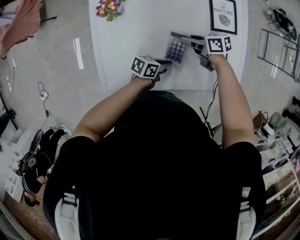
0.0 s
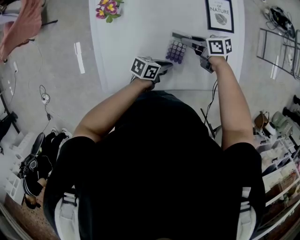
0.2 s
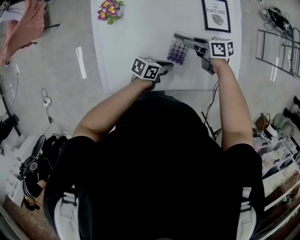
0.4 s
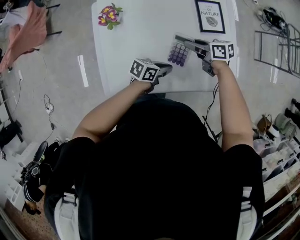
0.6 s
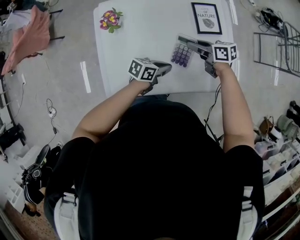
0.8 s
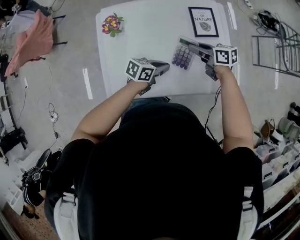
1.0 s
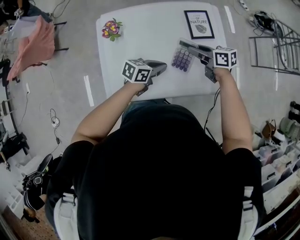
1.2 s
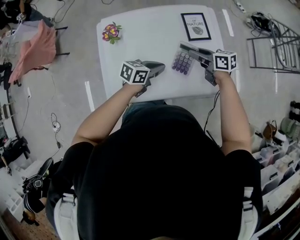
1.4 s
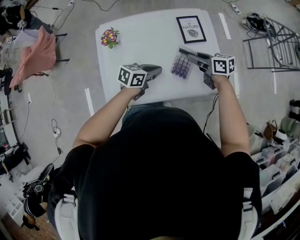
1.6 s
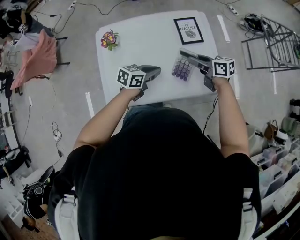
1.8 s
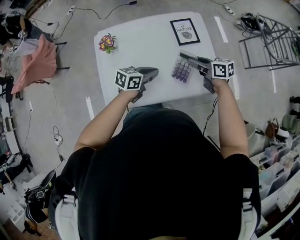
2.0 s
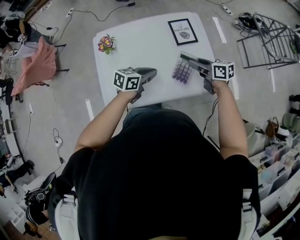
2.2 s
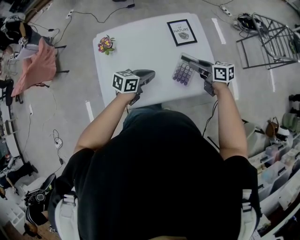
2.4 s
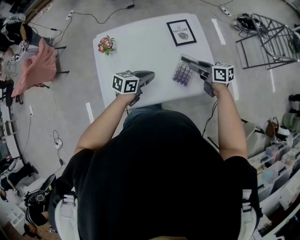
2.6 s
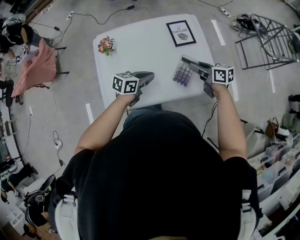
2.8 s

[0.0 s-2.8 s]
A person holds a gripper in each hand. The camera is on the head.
0.0 to 1.4 s: Both grippers travel together upward, some 20 cm. The left gripper changes its angle by some 30 degrees; the right gripper turns by about 20 degrees.
1.4 to 2.8 s: The right gripper shifts by some 10 cm.

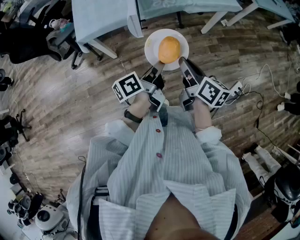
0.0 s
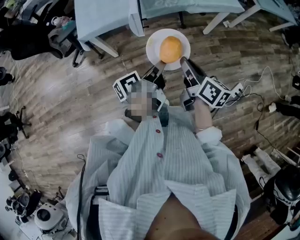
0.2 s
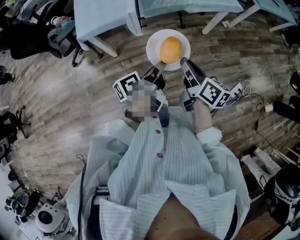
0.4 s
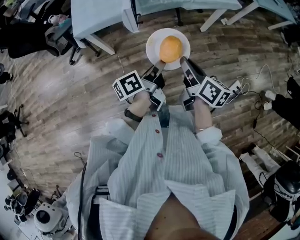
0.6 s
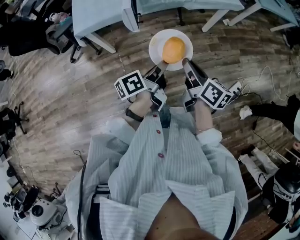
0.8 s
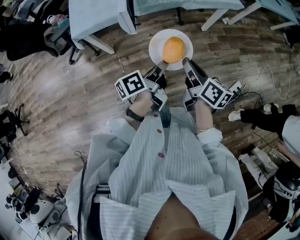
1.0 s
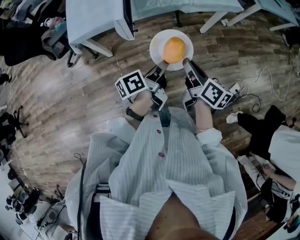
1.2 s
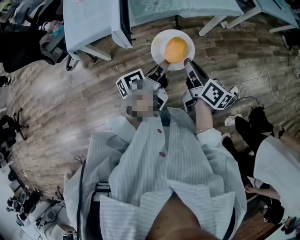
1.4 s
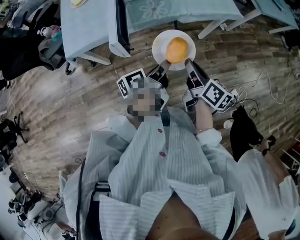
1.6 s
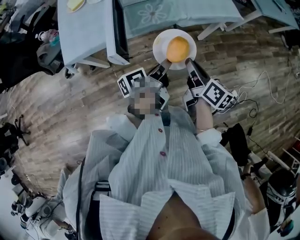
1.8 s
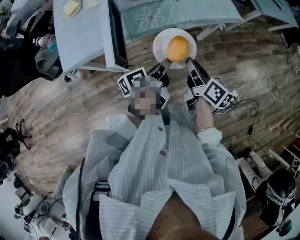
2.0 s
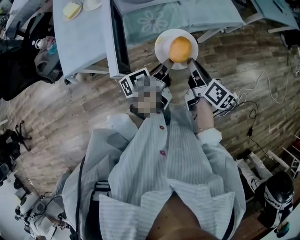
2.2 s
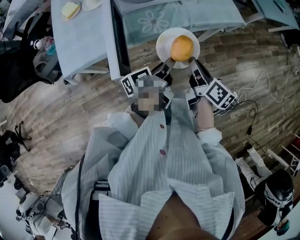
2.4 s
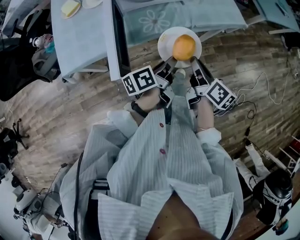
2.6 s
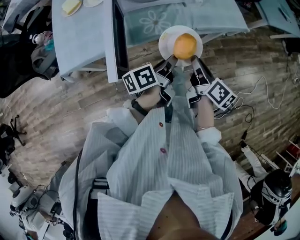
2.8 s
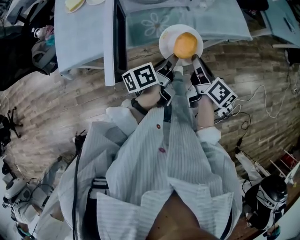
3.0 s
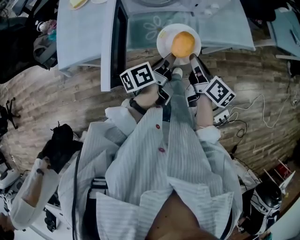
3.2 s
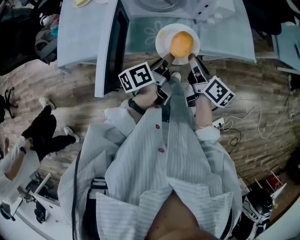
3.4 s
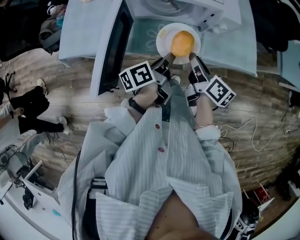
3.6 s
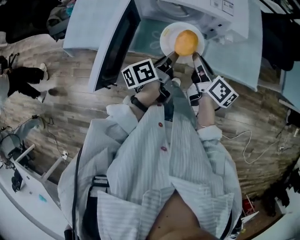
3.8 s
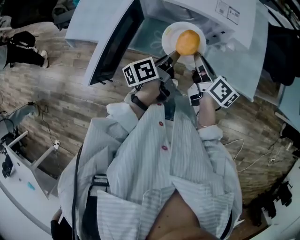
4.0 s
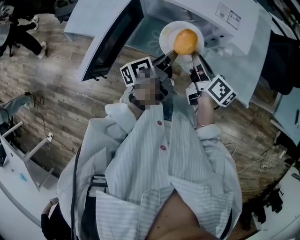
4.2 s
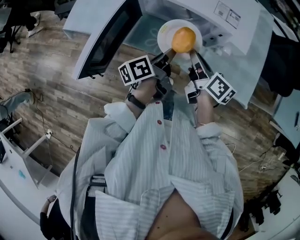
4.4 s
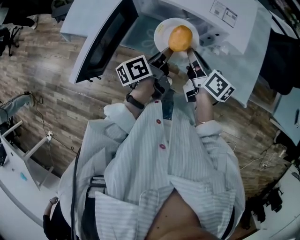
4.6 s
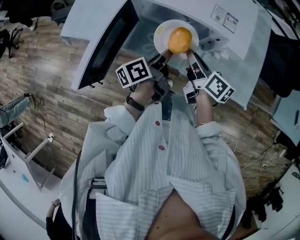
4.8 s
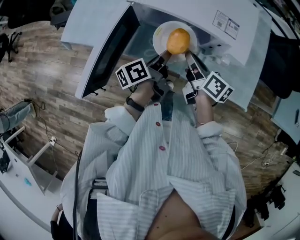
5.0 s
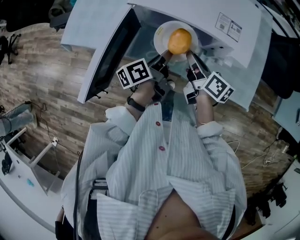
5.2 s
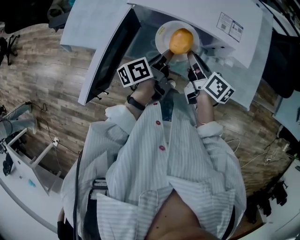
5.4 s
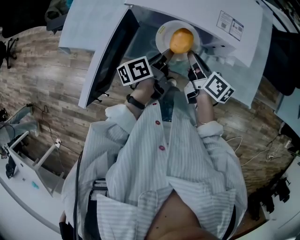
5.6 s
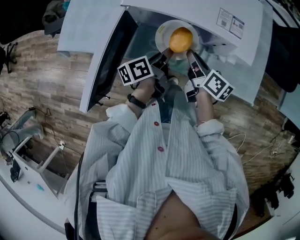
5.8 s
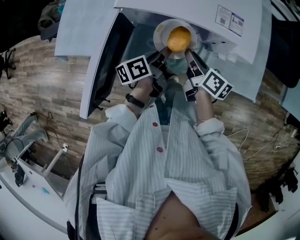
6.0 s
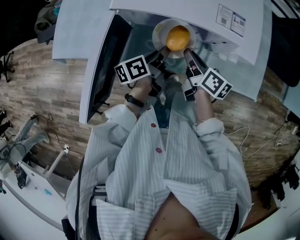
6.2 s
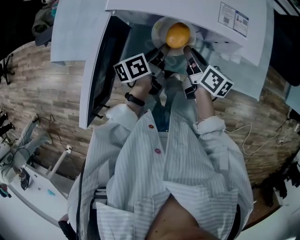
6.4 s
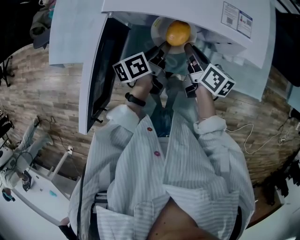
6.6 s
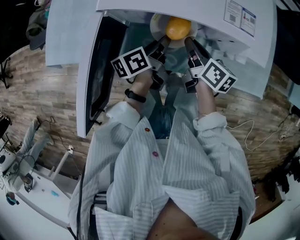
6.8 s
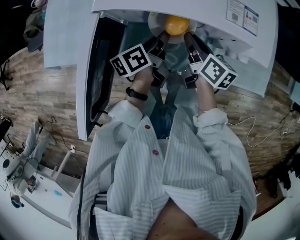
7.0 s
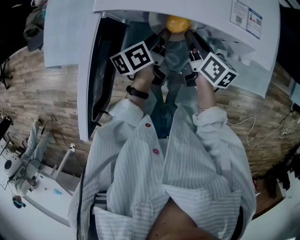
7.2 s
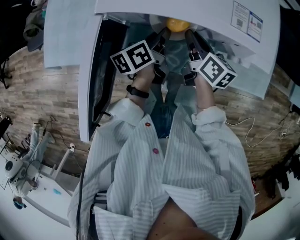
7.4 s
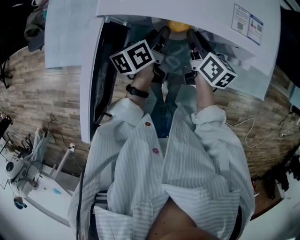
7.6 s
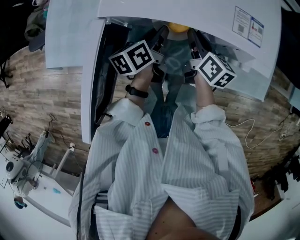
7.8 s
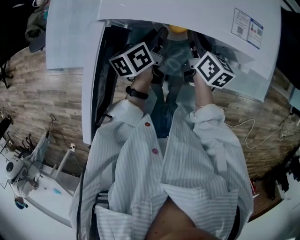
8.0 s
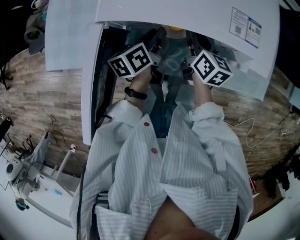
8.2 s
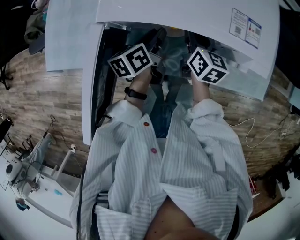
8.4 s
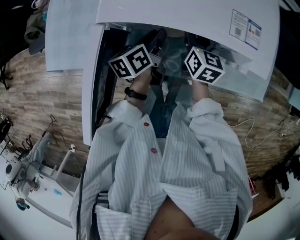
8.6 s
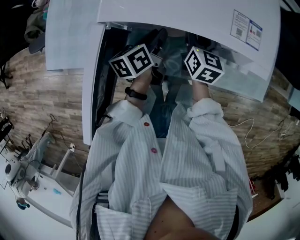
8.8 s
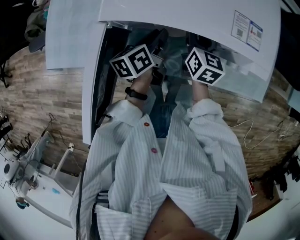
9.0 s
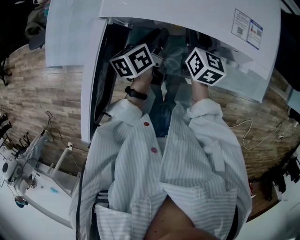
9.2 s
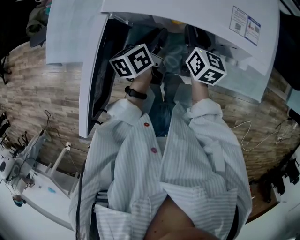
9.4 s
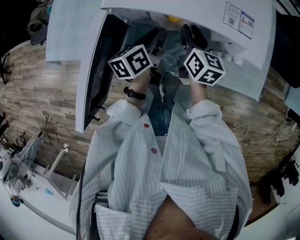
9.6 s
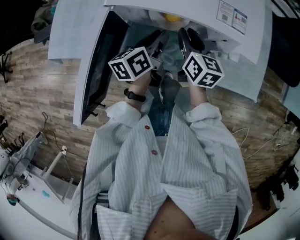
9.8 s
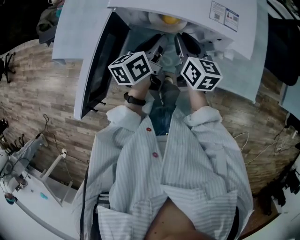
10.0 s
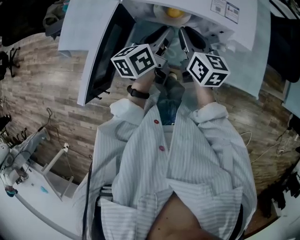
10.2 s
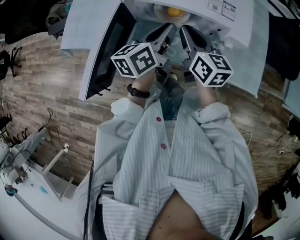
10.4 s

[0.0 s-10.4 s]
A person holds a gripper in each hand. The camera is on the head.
0.0 to 1.4 s: Both grippers travel together forward and to the right, approximately 10 cm.
1.4 to 3.0 s: Both grippers move forward, roughly 25 cm.
3.0 to 4.4 s: The left gripper changes place by about 15 cm, and swivels approximately 30 degrees, while the right gripper shifts by some 20 cm, and swivels some 40 degrees.
4.4 to 6.0 s: The right gripper moves downward and forward, some 10 cm. Meanwhile the left gripper moves forward and downward, approximately 10 cm.
6.0 to 7.4 s: The grippers both shift forward by about 10 cm.
7.4 to 9.0 s: The right gripper turns by about 30 degrees.
9.0 to 10.4 s: Both grippers travel together upward and backward, roughly 20 cm. The right gripper swivels some 20 degrees.

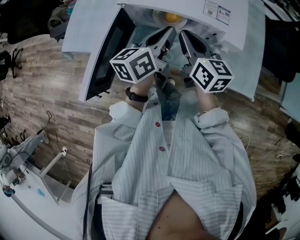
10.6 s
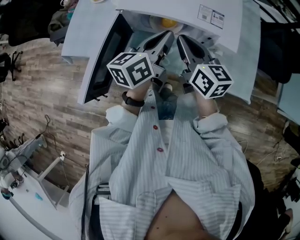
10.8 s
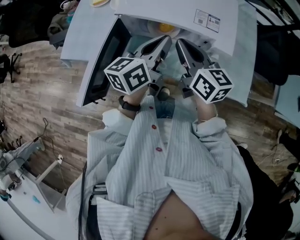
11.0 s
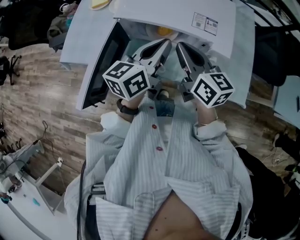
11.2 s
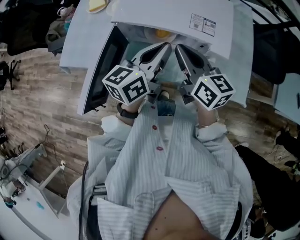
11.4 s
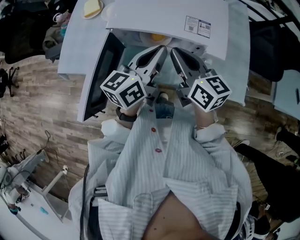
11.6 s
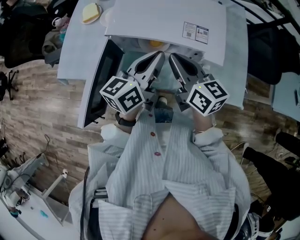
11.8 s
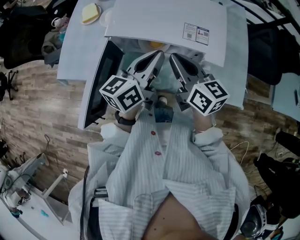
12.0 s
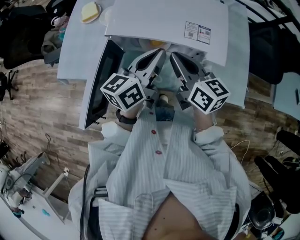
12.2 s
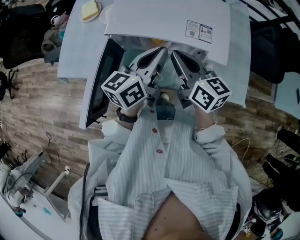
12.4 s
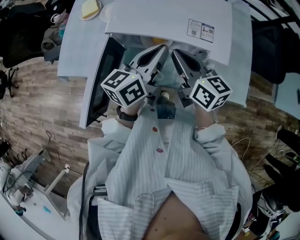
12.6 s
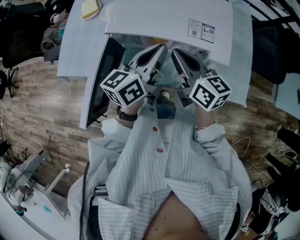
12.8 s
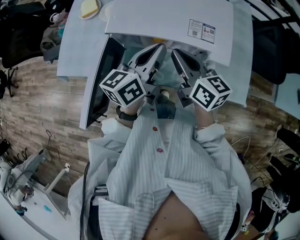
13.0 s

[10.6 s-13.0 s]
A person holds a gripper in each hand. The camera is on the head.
10.6 to 13.0 s: The grippers make only small movements.

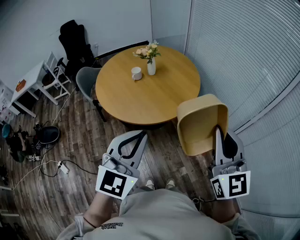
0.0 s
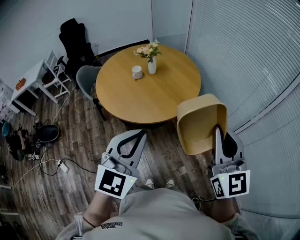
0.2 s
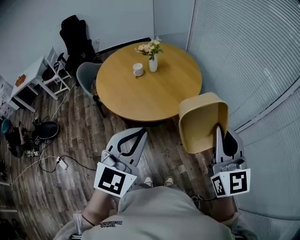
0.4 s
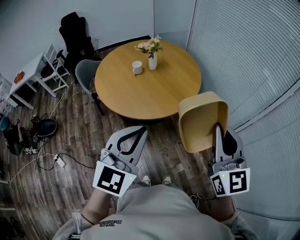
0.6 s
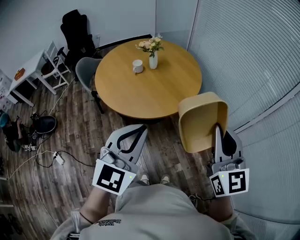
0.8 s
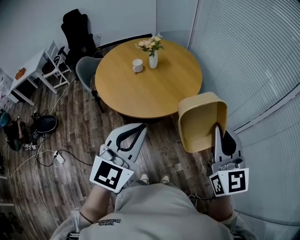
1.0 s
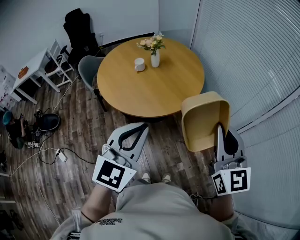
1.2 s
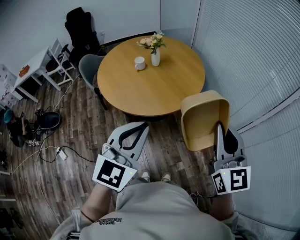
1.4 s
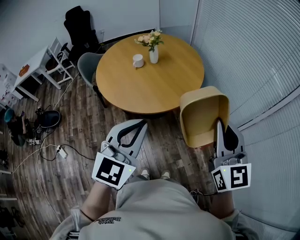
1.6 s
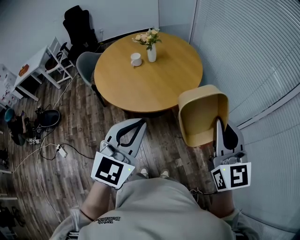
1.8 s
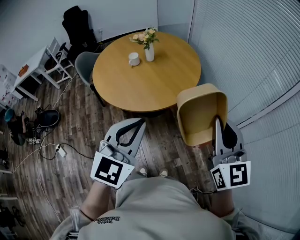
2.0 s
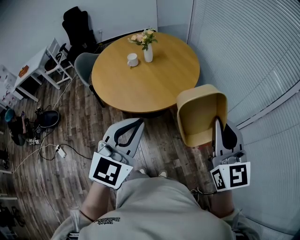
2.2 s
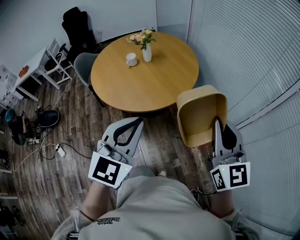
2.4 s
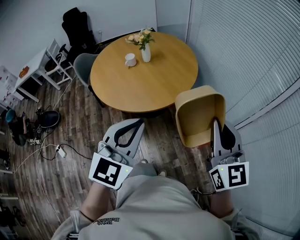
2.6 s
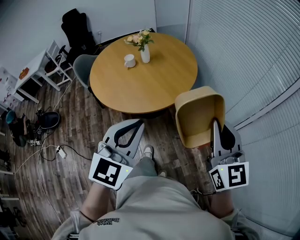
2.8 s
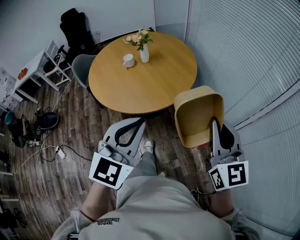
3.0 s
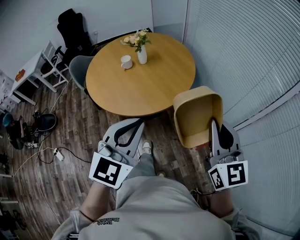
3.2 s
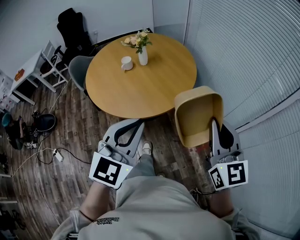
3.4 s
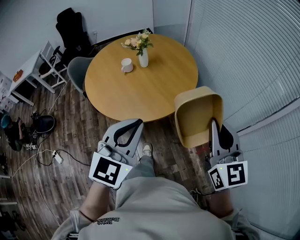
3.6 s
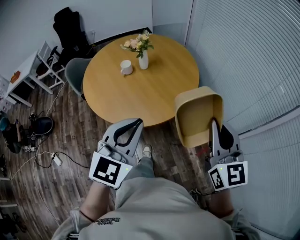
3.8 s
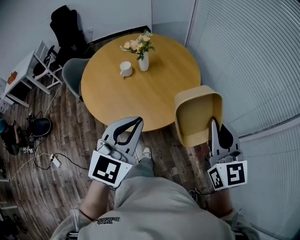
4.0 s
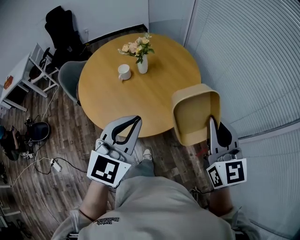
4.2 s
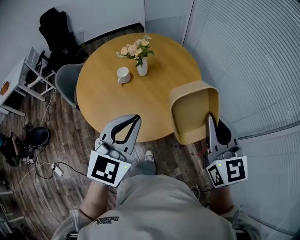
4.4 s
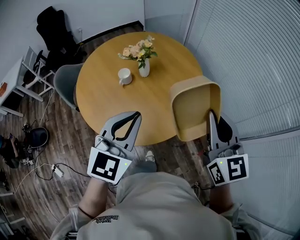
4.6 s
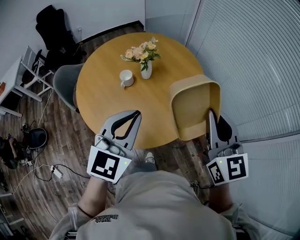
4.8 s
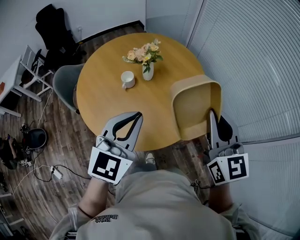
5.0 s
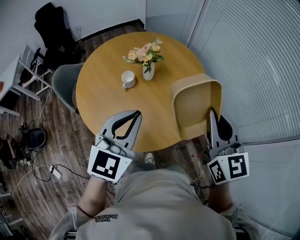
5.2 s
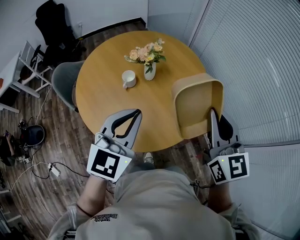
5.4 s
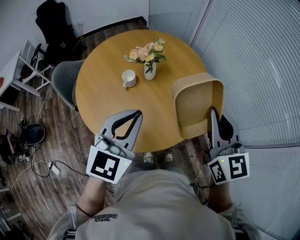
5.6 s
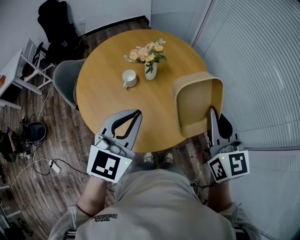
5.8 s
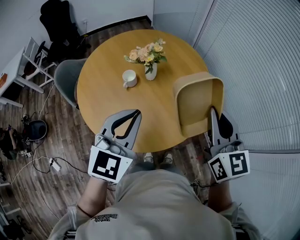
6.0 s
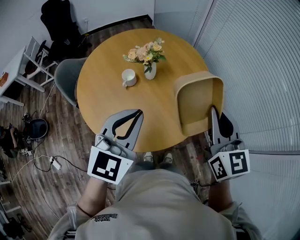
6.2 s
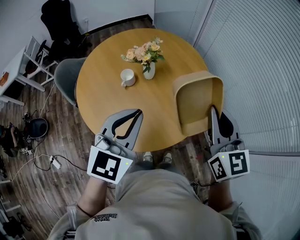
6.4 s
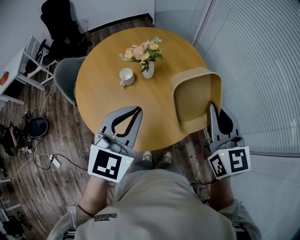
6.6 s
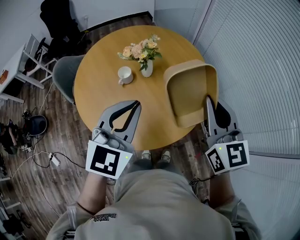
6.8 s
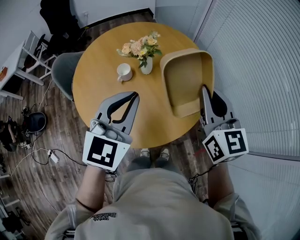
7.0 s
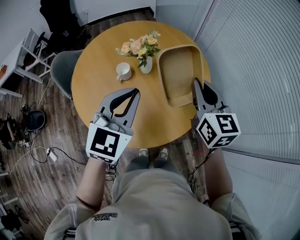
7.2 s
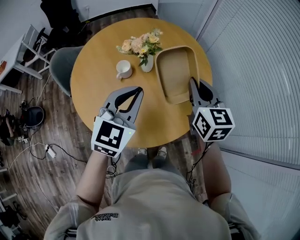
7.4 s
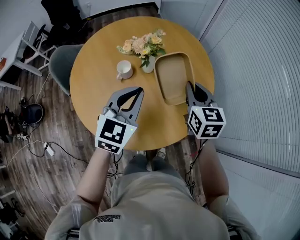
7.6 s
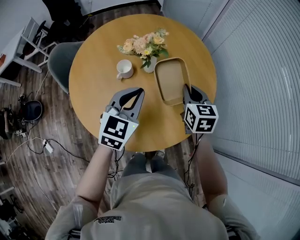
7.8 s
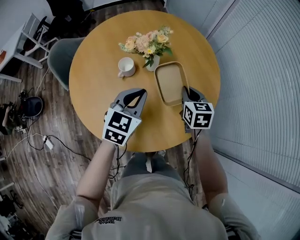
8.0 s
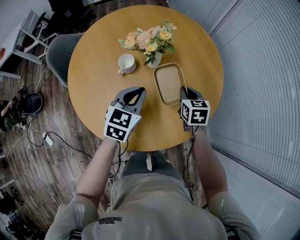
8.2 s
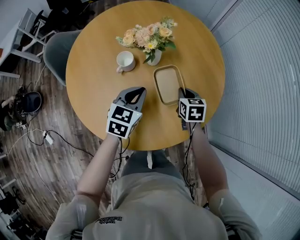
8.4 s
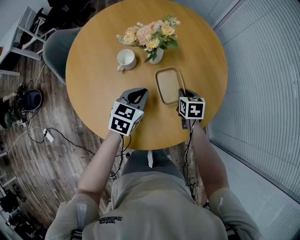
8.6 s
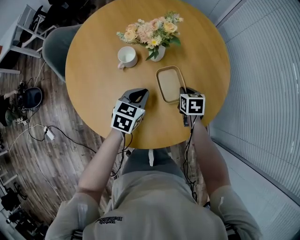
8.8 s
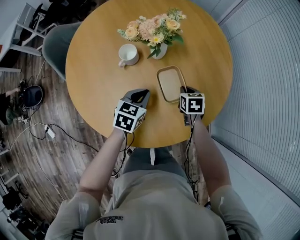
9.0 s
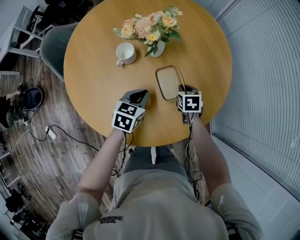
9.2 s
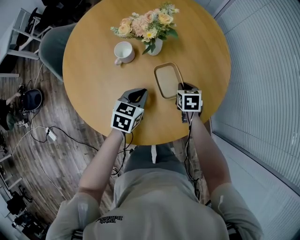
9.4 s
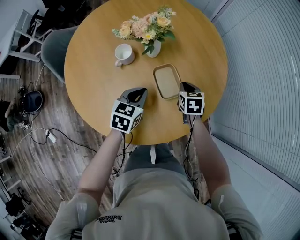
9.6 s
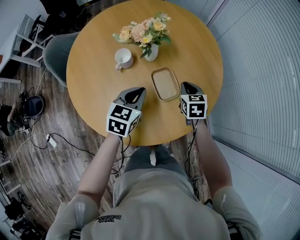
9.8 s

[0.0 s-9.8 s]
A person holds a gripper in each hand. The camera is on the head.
0.0 to 1.4 s: The right gripper ends up approximately 5 cm from where it was.
1.4 to 2.8 s: The two grippers go about 10 cm to the right.
2.8 to 4.2 s: The grippers both shift forward and to the left by some 20 cm.
4.2 to 5.6 s: Both grippers move forward and to the left, some 15 cm.
5.6 to 7.0 s: The left gripper travels forward by about 5 cm. The right gripper travels forward by roughly 10 cm.
7.0 to 8.4 s: The right gripper goes approximately 35 cm downward, and tips its fingers downward by about 40 degrees. Meanwhile the left gripper moves downward and forward, roughly 30 cm, and swivels some 30 degrees.
8.4 to 9.8 s: The left gripper travels downward and back again, approximately 10 cm each way. Meanwhile the right gripper moves roughly 10 cm downward and comes back.
